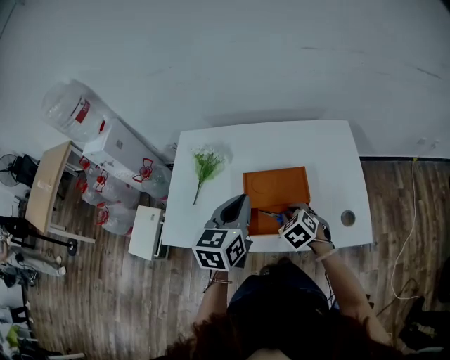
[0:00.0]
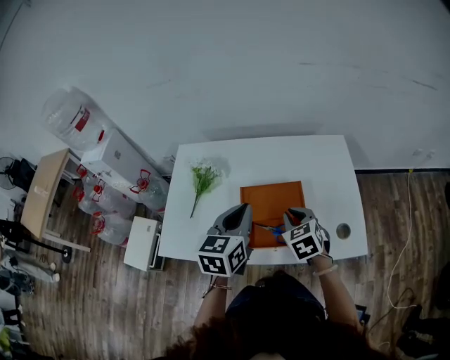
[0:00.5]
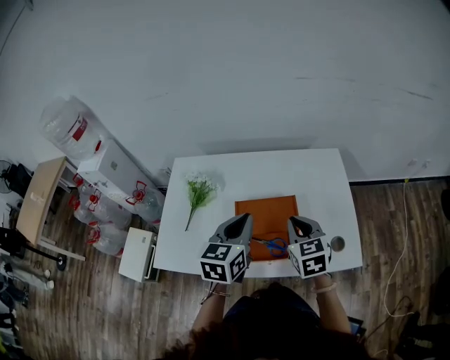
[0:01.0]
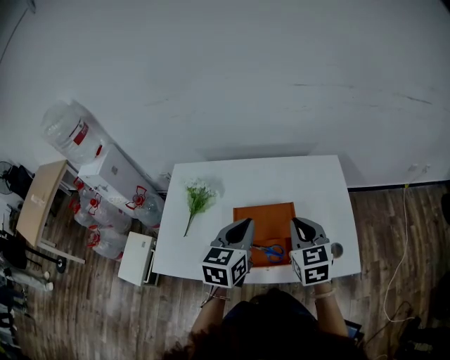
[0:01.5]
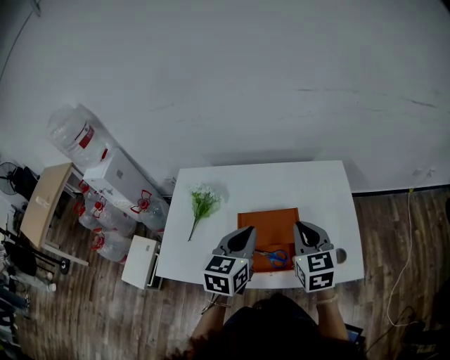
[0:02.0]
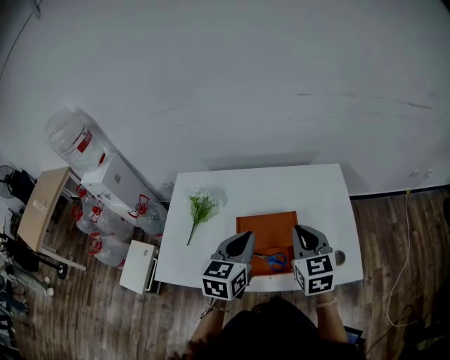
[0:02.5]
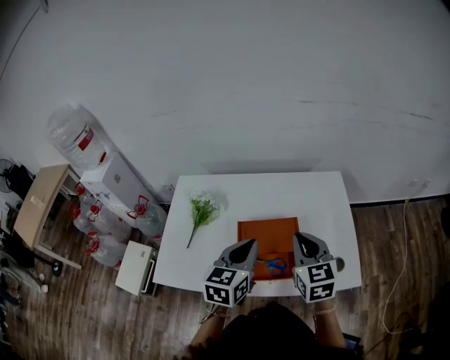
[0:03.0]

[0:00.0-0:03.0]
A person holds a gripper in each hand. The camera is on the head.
0:00.0 to 0:01.5: The right gripper shifts approximately 15 cm upward, and tips its fingers upward by about 30 degrees. Meanwhile the left gripper ends up roughly 5 cm from where it was.
0:01.5 to 0:03.0: The grippers make only small movements.

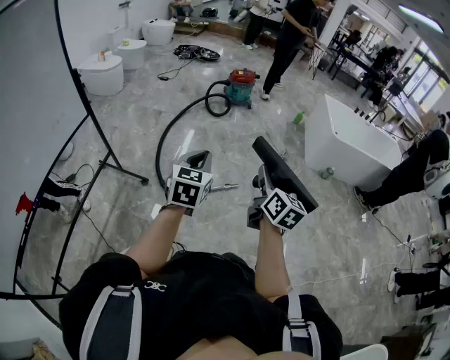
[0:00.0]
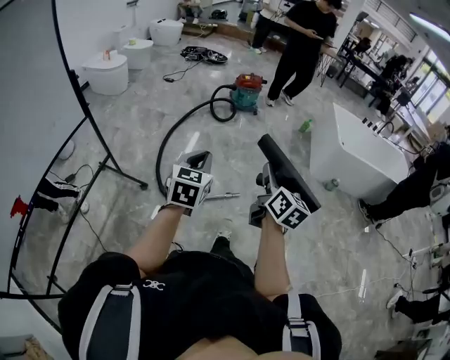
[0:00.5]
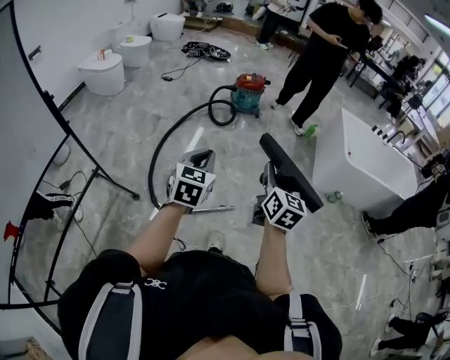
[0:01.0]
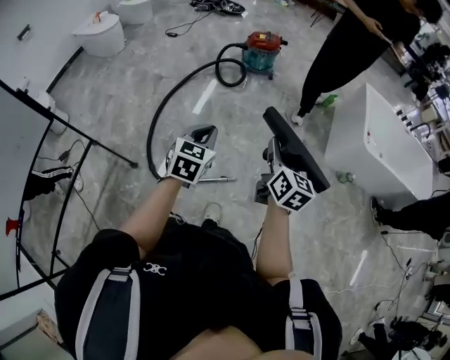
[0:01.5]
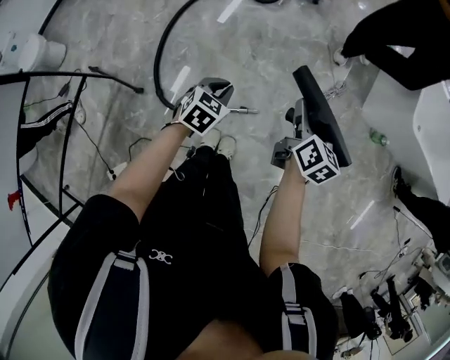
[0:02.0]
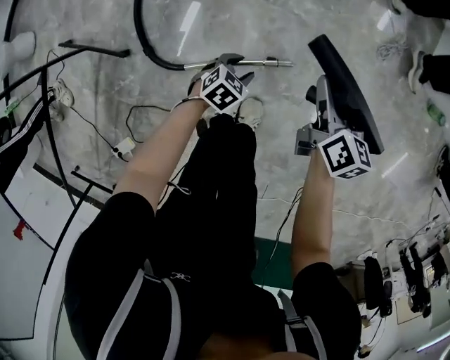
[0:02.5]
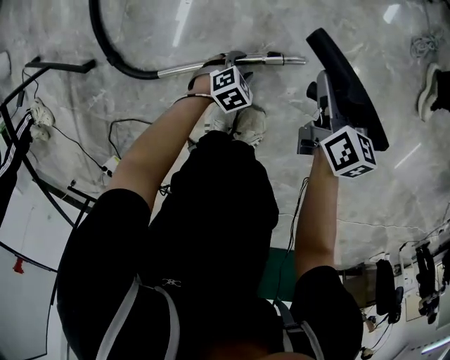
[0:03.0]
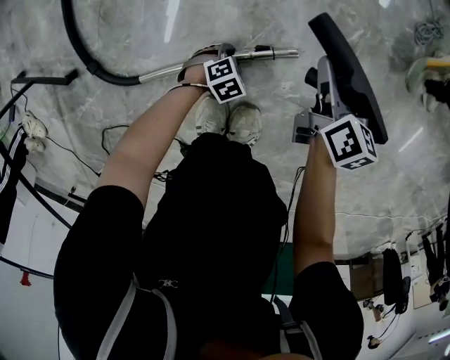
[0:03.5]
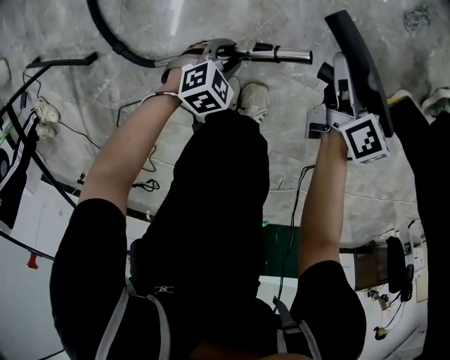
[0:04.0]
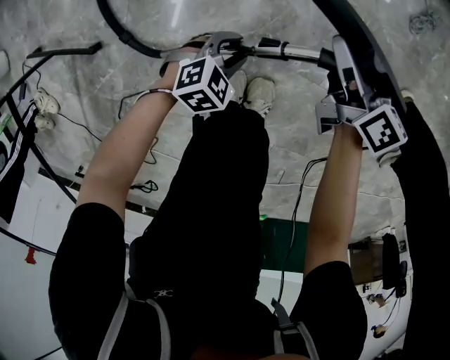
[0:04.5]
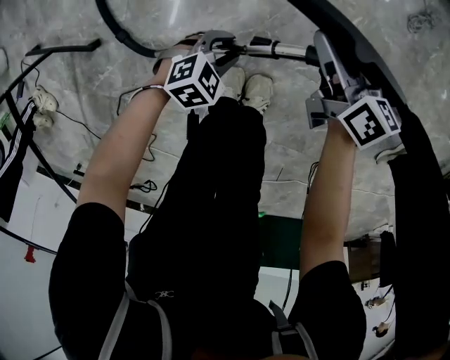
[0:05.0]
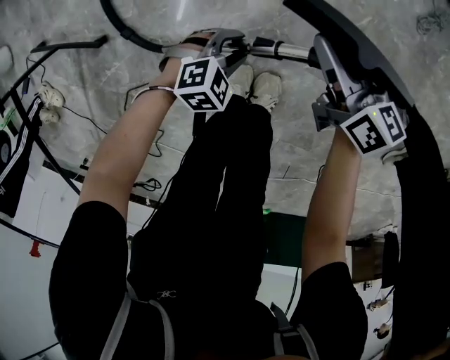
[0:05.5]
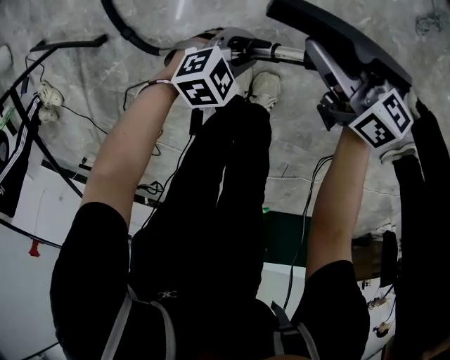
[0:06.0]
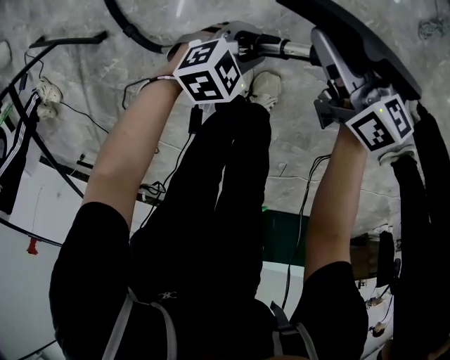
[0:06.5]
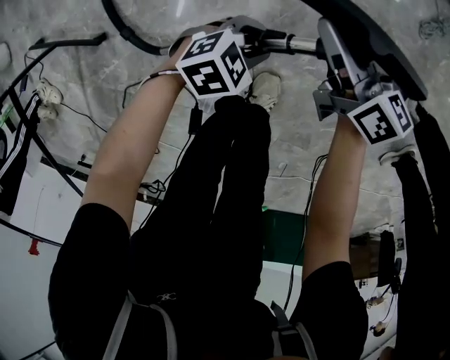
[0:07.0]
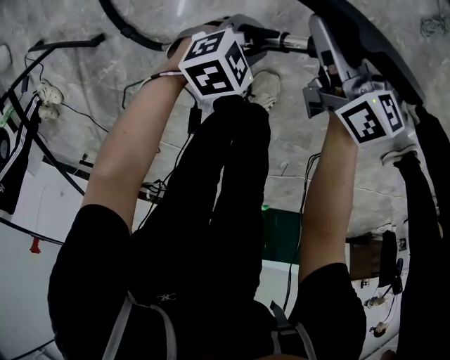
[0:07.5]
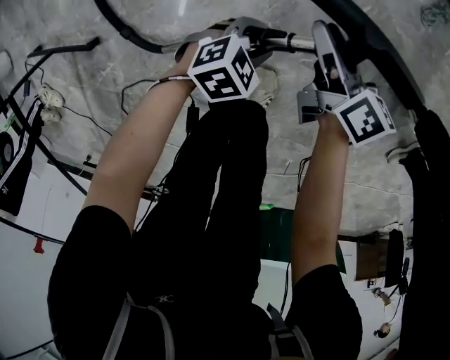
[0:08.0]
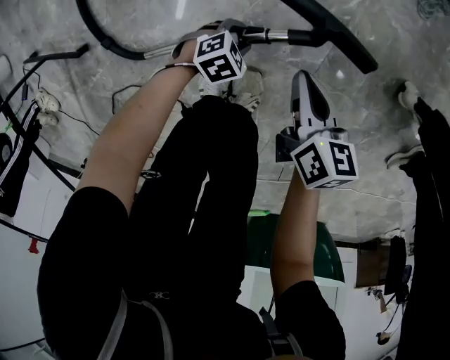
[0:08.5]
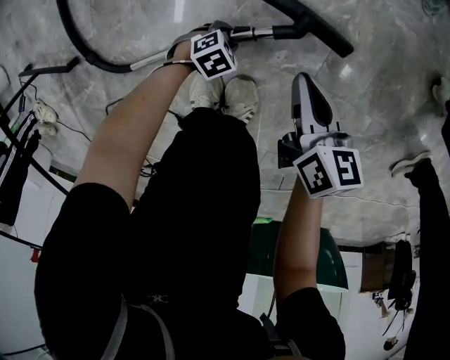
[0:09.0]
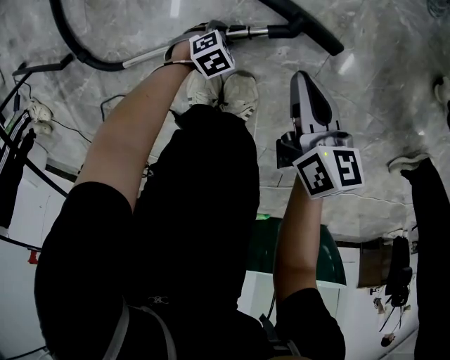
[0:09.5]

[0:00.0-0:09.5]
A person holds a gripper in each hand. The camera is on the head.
0:00.0 to 0:02.0: Both grippers are carried forward, some 50 cm. The two grippers go some 30 cm downward. The left gripper rotates approximately 30 degrees. The right gripper changes its angle by some 20 degrees.
0:02.0 to 0:04.0: The grippers both shift downward by some 50 cm. The left gripper turns by about 40 degrees, and opens up.
0:04.0 to 0:05.5: The right gripper shifts about 15 cm to the left and upward, and rotates roughly 30 degrees. The left gripper moves upward, about 5 cm.
0:05.5 to 0:07.5: The left gripper ends up approximately 5 cm from where it was.
0:07.5 to 0:09.5: The left gripper heads downward, covering some 30 cm, and turns by approximately 20 degrees. The right gripper moves approximately 25 cm, rotates about 20 degrees, and closes.

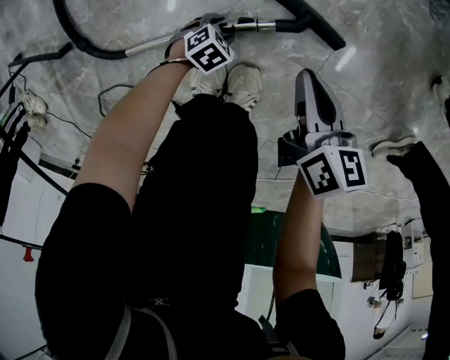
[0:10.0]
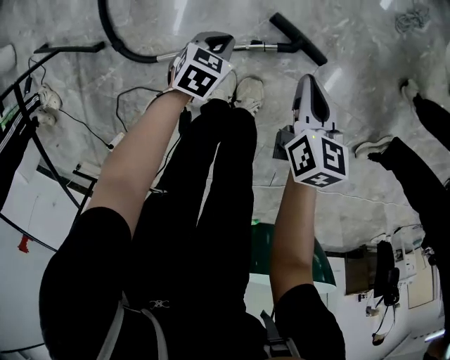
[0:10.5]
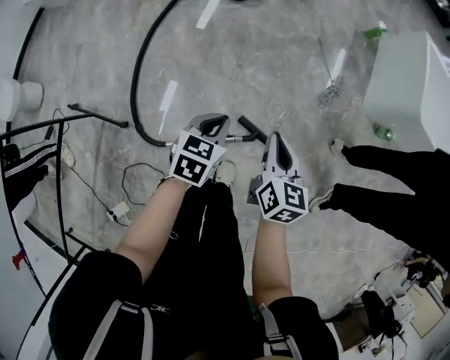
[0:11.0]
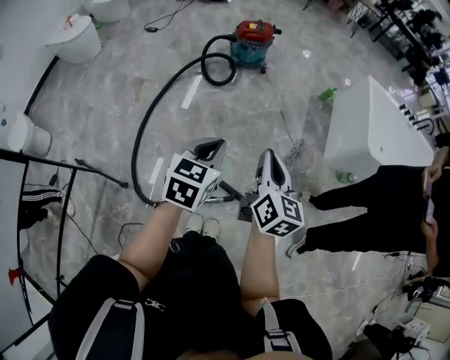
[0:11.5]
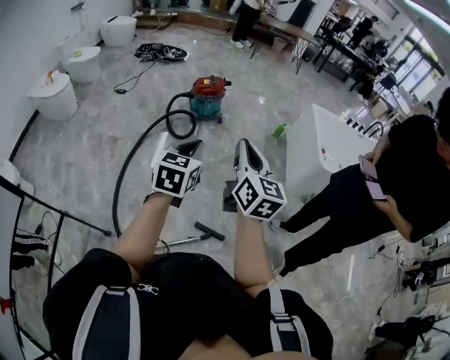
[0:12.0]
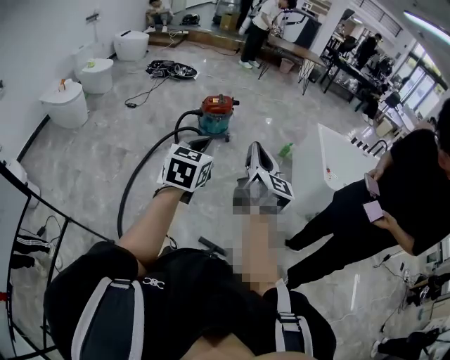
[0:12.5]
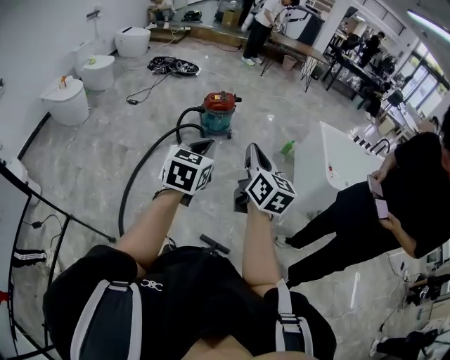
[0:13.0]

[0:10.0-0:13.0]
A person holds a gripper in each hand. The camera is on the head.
0:10.0 to 0:11.5: Both grippers travel together upward, about 80 cm. The left gripper tips its fingers upward by roughly 40 degrees, and closes up, while the right gripper turns by roughly 40 degrees.
0:11.5 to 0:13.0: Both grippers move upward, roughly 20 cm.

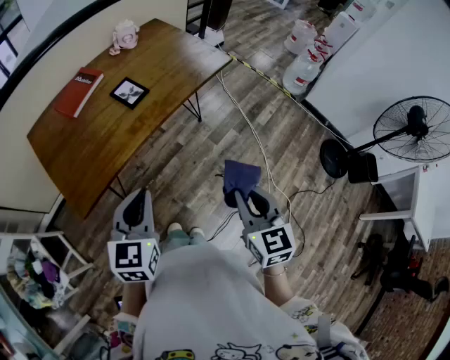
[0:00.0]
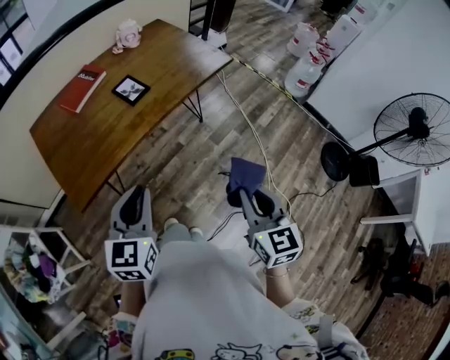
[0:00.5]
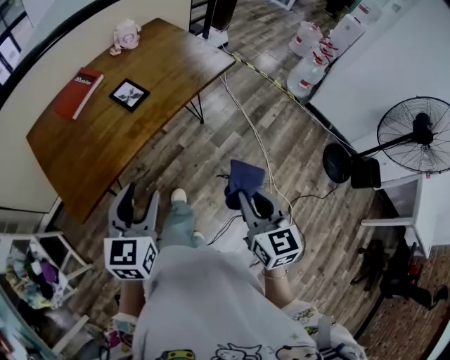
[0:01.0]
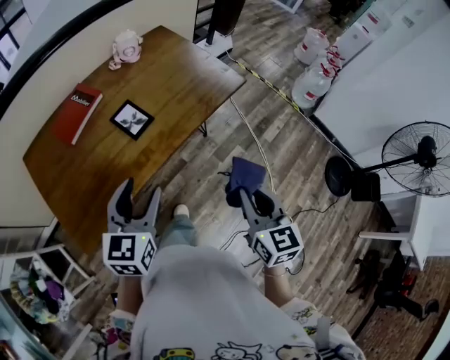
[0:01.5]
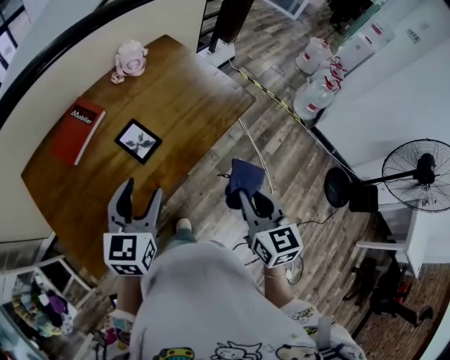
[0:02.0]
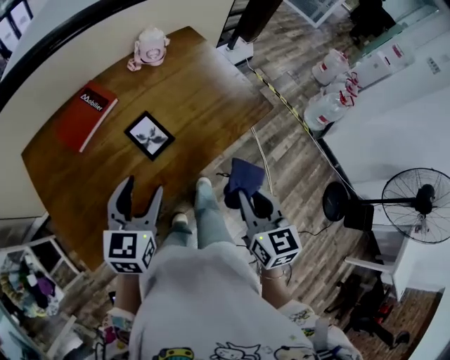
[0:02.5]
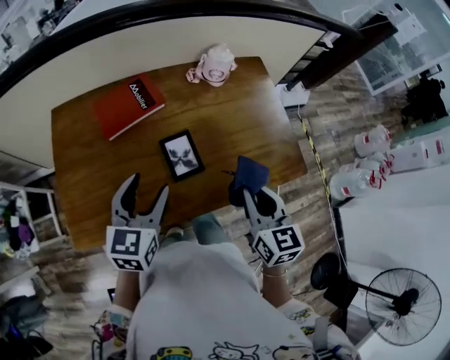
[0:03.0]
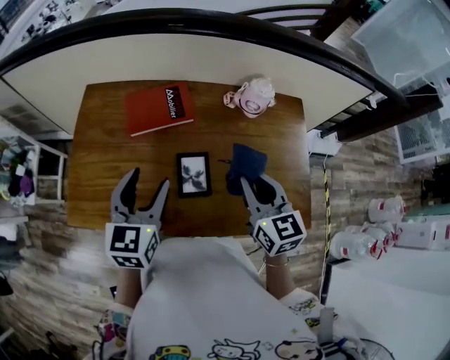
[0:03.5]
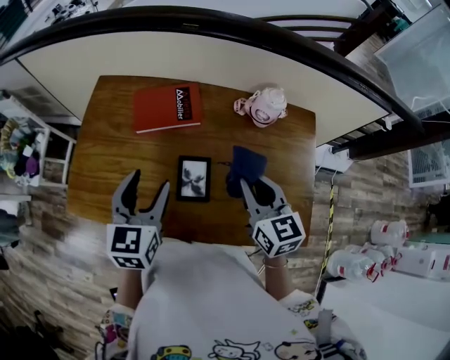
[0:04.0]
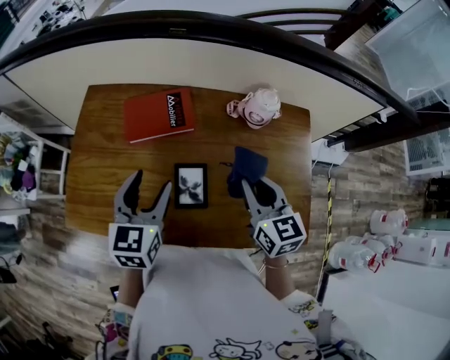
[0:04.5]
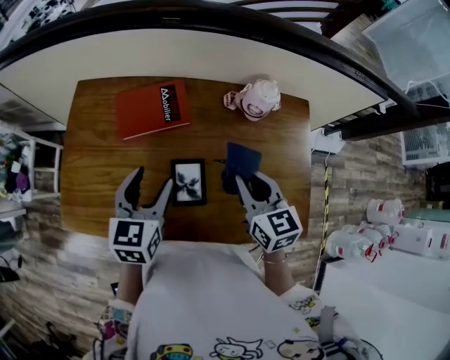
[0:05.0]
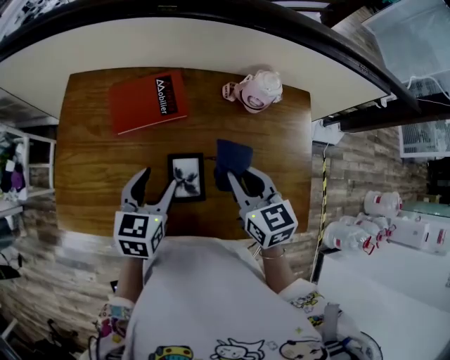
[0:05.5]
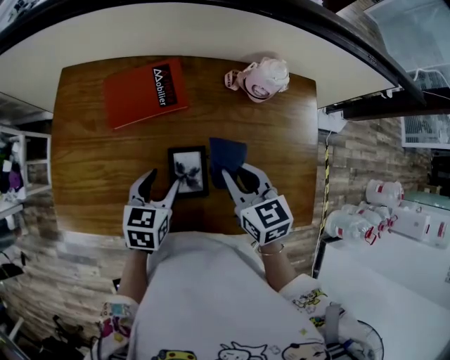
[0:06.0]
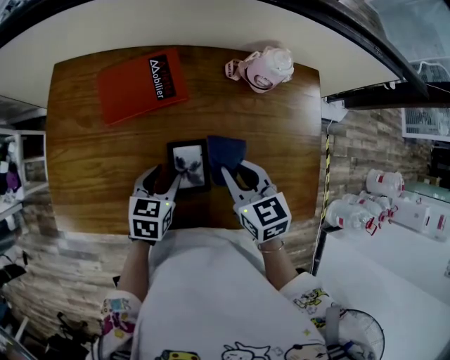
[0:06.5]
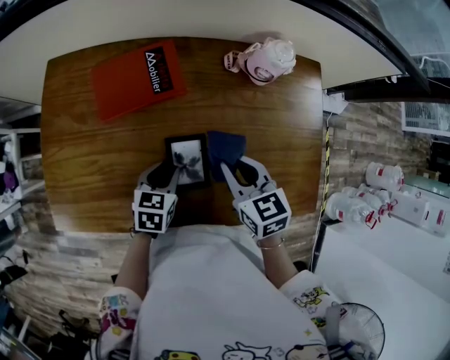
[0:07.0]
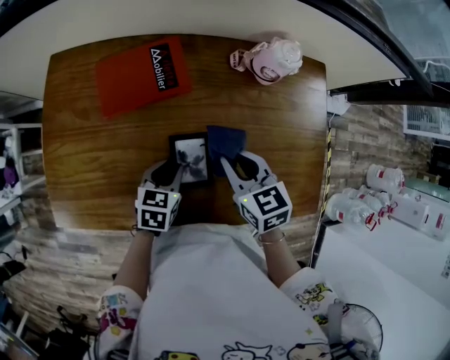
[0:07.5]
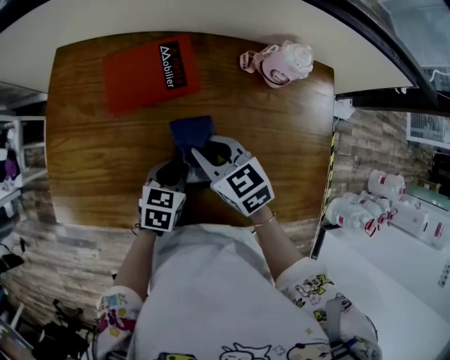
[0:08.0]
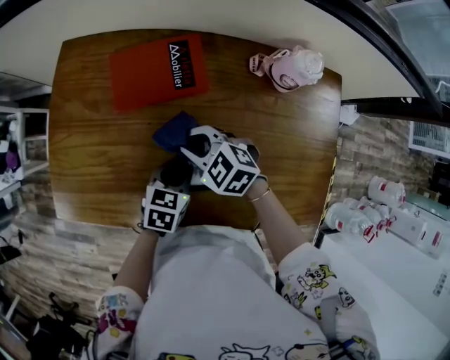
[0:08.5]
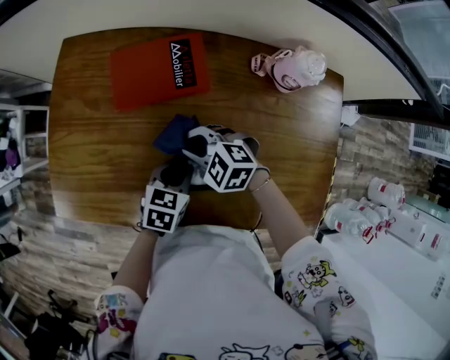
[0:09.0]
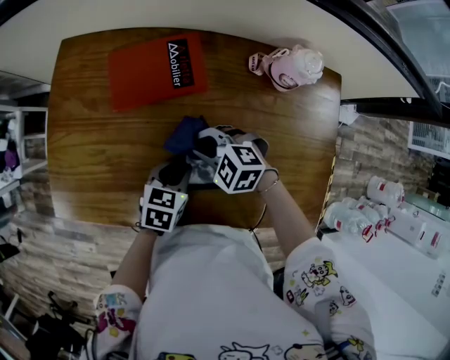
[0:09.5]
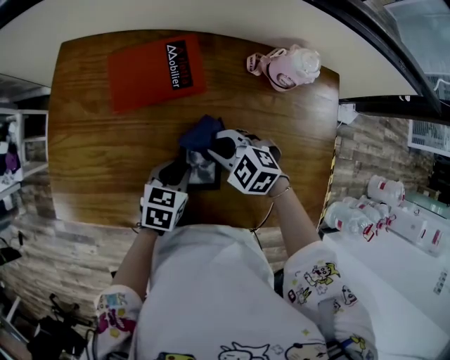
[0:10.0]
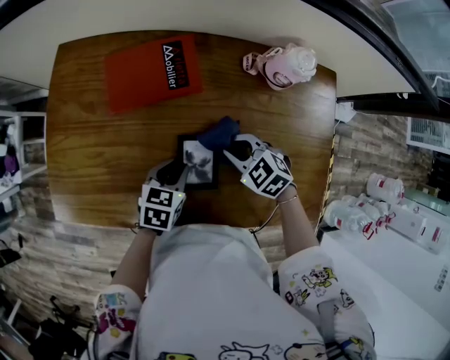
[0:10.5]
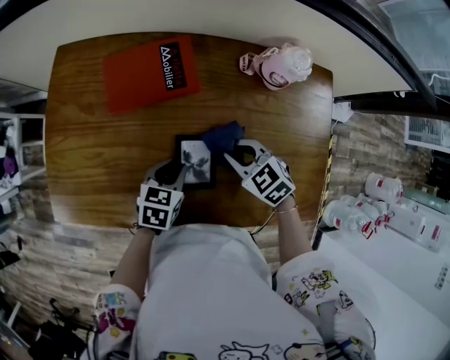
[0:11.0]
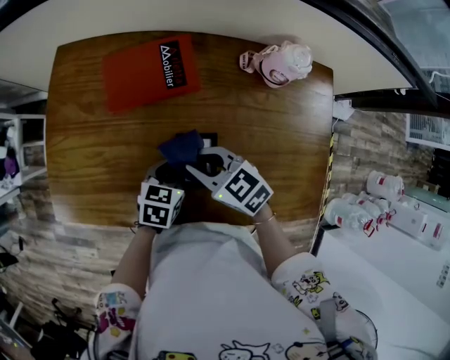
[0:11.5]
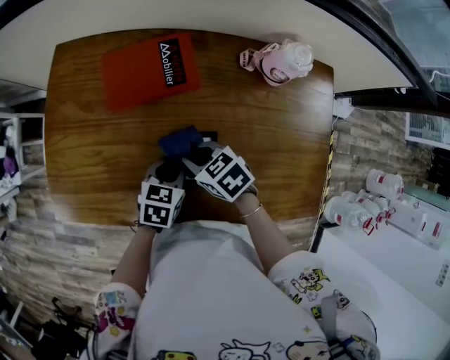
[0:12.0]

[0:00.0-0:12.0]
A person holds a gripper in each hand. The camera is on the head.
0:00.0 to 0:02.0: Both grippers move forward, roughly 25 cm. The left gripper opens up.
0:02.0 to 0:04.0: The right gripper changes place by approximately 40 cm, and changes its angle by some 60 degrees; the left gripper moves roughly 15 cm, and turns by about 50 degrees.
0:04.0 to 0:06.0: The left gripper moves downward, some 15 cm, and rotates some 30 degrees, while the right gripper is displaced downward by approximately 10 cm.
0:06.0 to 0:08.0: The left gripper travels downward by roughly 10 cm, and closes its fingers; the right gripper heads to the left and downward, covering roughly 10 cm.
0:08.0 to 0:10.0: The right gripper shifts about 5 cm downward, and swivels approximately 40 degrees.
0:10.0 to 0:12.0: The right gripper moves to the left, about 5 cm, and turns by roughly 40 degrees.
